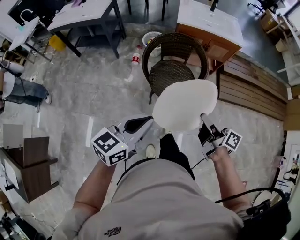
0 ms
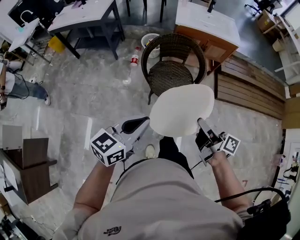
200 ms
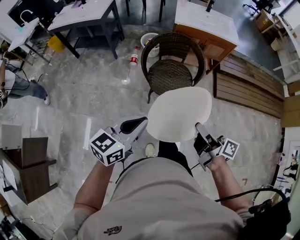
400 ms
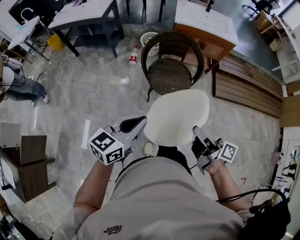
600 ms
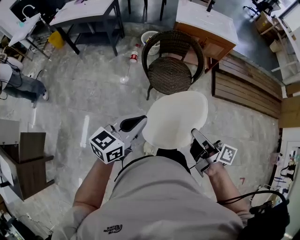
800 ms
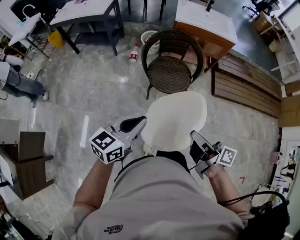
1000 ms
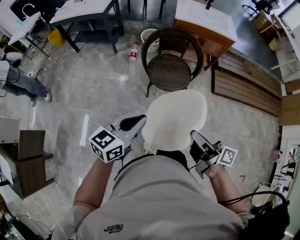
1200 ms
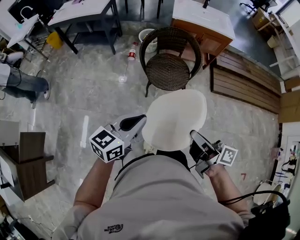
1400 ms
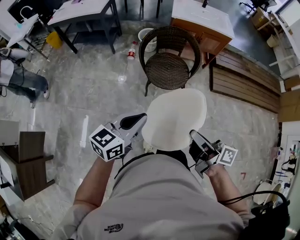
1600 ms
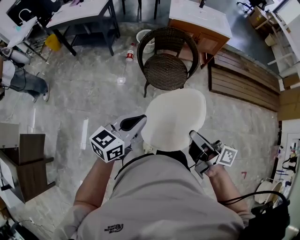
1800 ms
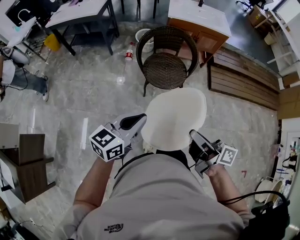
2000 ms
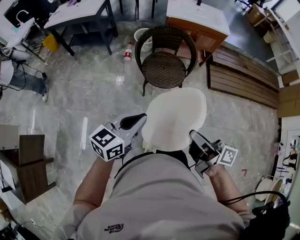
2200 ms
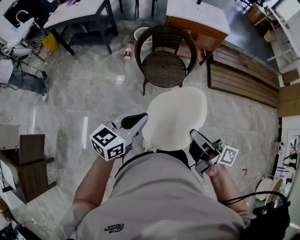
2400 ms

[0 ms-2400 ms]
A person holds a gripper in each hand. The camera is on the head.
0 ms to 1200 ms: The right gripper goes some 15 cm backward. Meanwhile the left gripper is displaced backward by approximately 10 cm.
1200 ms to 2400 ms: The grippers make only small movements.

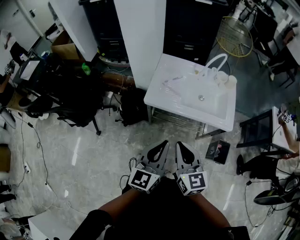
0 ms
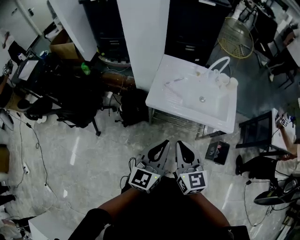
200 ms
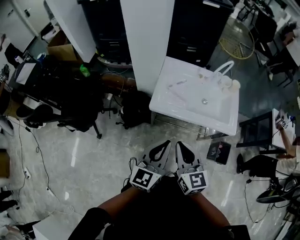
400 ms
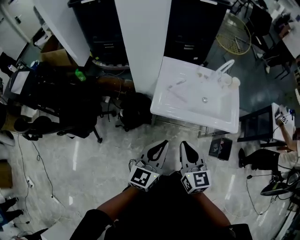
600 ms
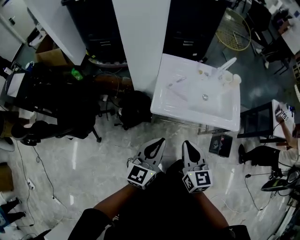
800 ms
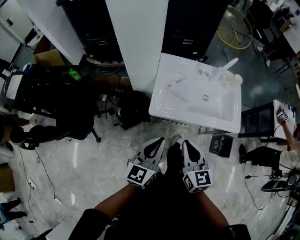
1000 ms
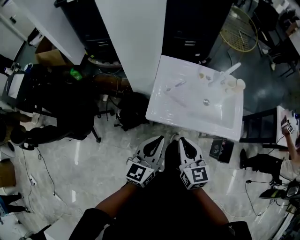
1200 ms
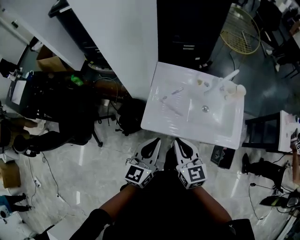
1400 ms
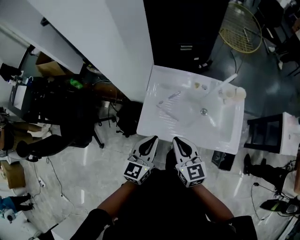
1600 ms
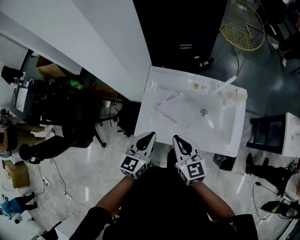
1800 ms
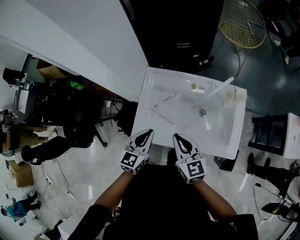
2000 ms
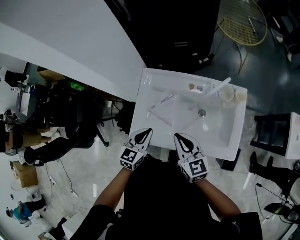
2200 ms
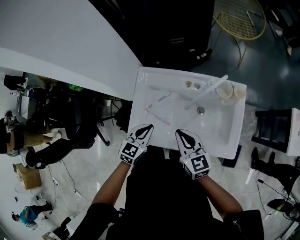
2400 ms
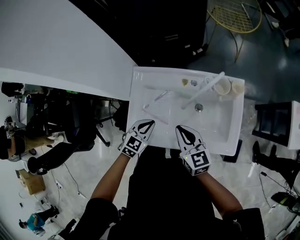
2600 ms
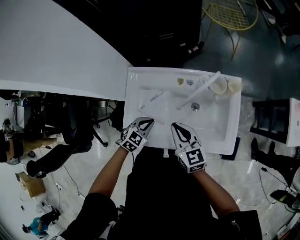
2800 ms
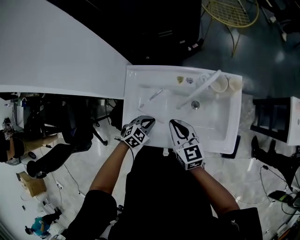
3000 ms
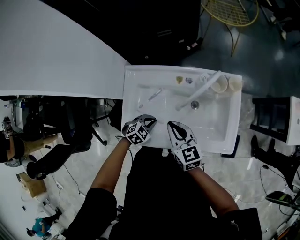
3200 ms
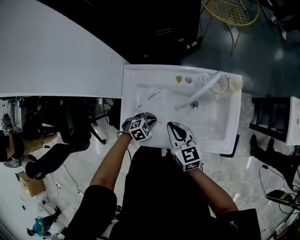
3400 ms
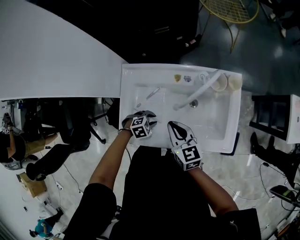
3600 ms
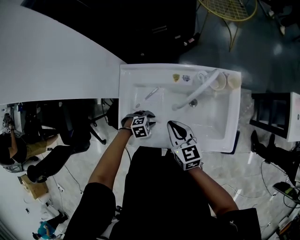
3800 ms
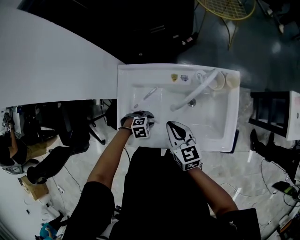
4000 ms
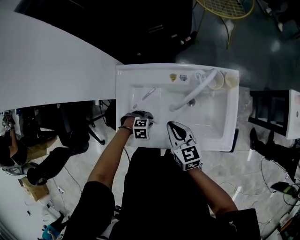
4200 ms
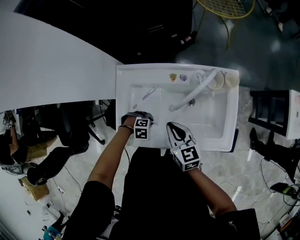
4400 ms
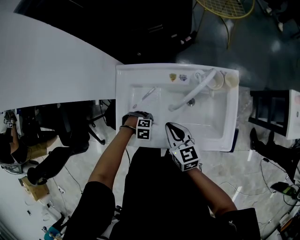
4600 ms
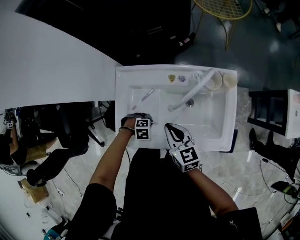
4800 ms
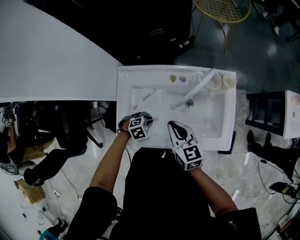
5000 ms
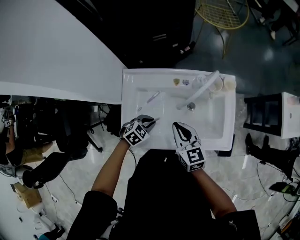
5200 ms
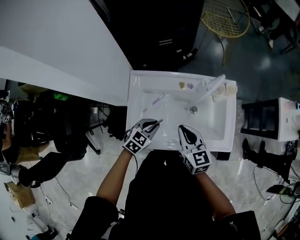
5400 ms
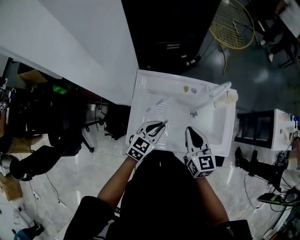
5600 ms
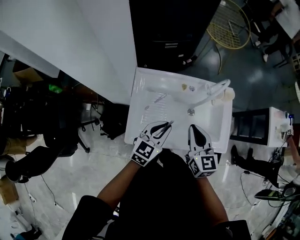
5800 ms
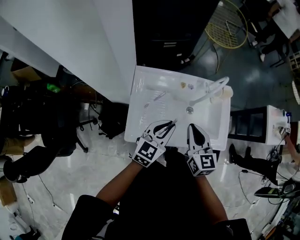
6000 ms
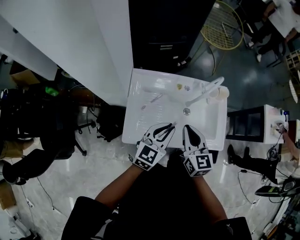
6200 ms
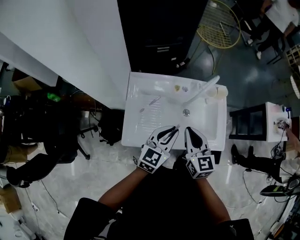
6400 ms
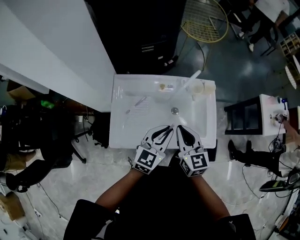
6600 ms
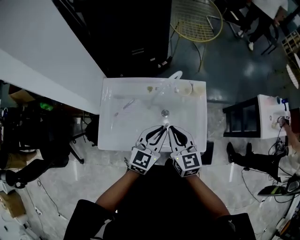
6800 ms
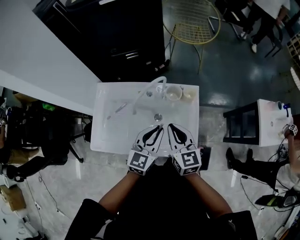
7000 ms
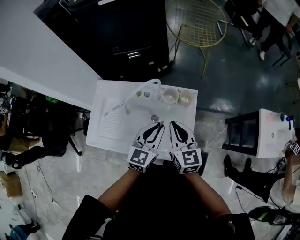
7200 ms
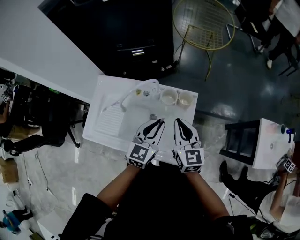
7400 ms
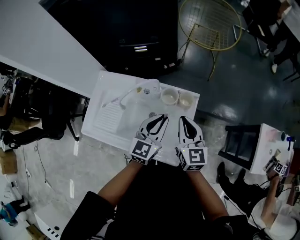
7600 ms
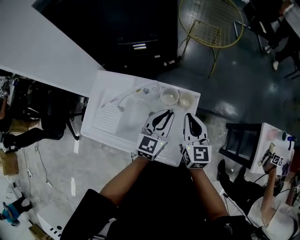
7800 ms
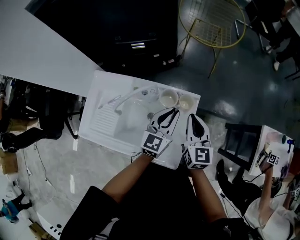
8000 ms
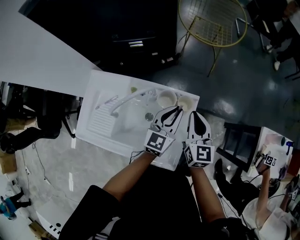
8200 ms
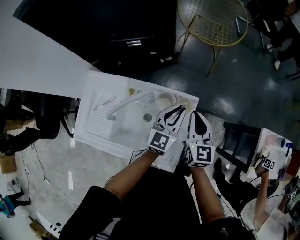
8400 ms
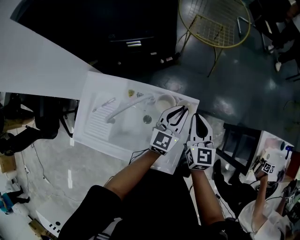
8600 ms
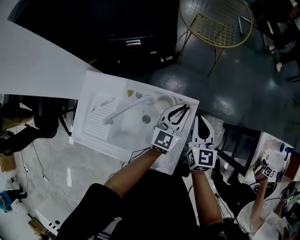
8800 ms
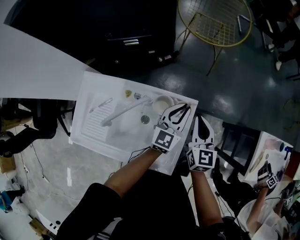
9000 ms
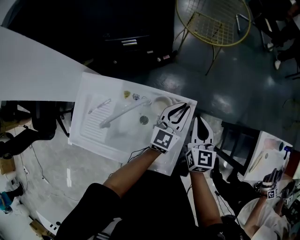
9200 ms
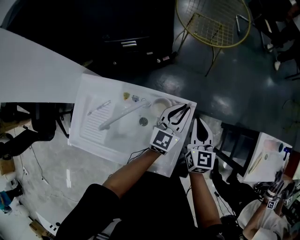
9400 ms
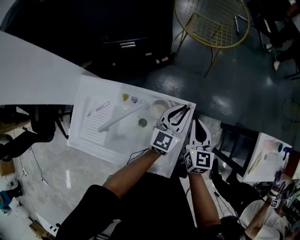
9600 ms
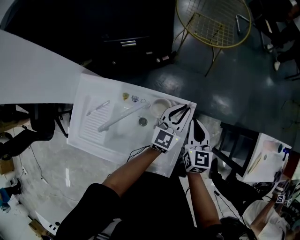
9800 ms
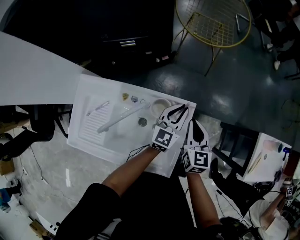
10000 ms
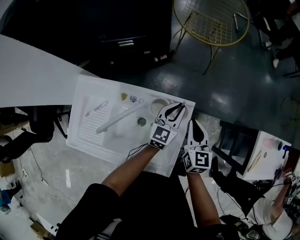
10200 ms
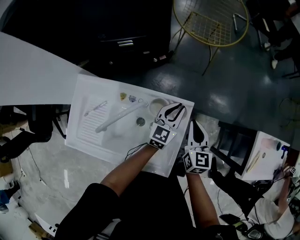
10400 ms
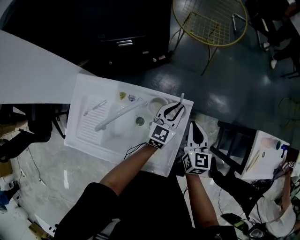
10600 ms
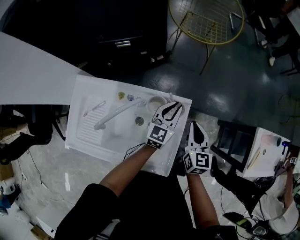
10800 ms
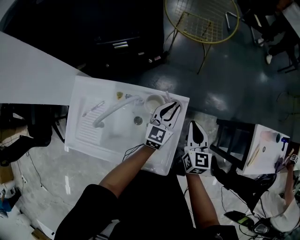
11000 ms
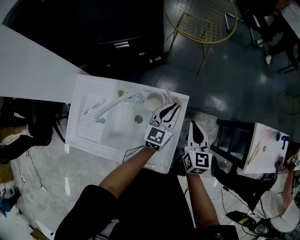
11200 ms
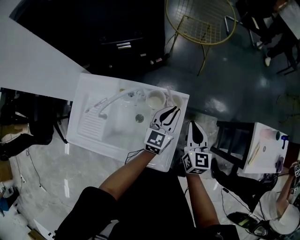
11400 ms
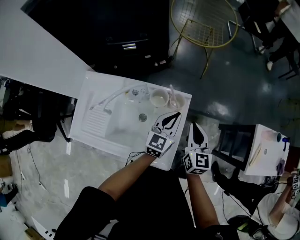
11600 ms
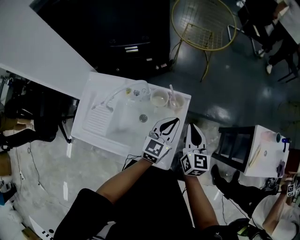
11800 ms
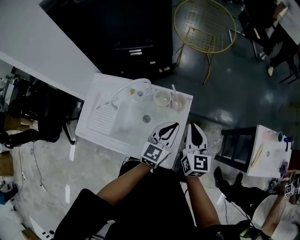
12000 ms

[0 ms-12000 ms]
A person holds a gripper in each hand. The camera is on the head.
0 ms to 1600 ms: The two grippers go some 30 cm forward.
1600 ms to 3000 ms: The left gripper moves downward and forward, approximately 25 cm, and tips its fingers downward by roughly 40 degrees. The right gripper heads forward, to the right and downward, covering roughly 20 cm.
3000 ms to 4400 ms: The left gripper goes about 10 cm downward, and swivels about 50 degrees.
4400 ms to 6000 ms: The left gripper travels upward by some 30 cm, and points its fingers some 60 degrees further upward, while the right gripper travels upward by about 10 cm, and turns by some 20 degrees.
6000 ms to 7600 ms: The two grippers go about 35 cm to the right and forward. The left gripper rotates roughly 20 degrees.
7600 ms to 9000 ms: The right gripper moves forward, to the right and downward, some 15 cm. The left gripper moves forward and to the right, about 20 cm.
9000 ms to 10400 ms: The left gripper shifts approximately 5 cm downward.
10400 ms to 12000 ms: The grippers both shift backward and upward by approximately 15 cm.

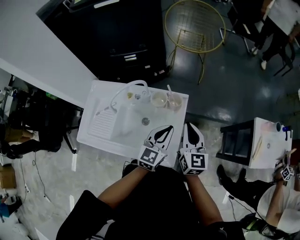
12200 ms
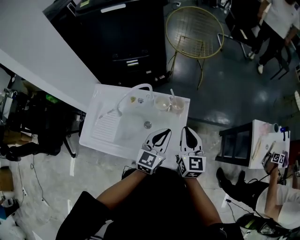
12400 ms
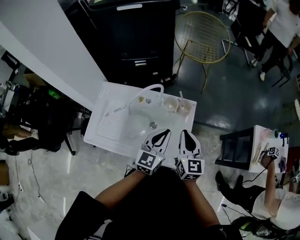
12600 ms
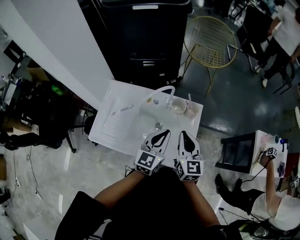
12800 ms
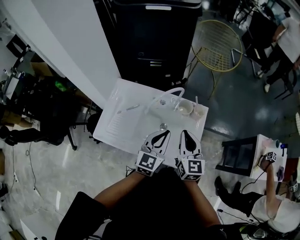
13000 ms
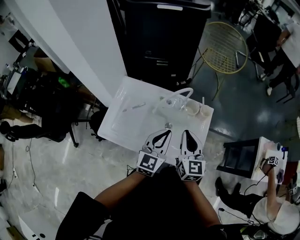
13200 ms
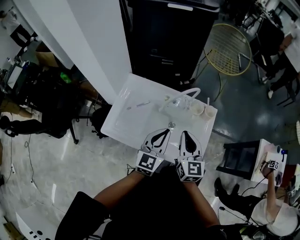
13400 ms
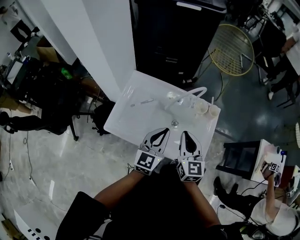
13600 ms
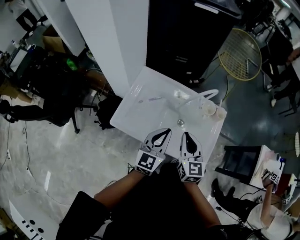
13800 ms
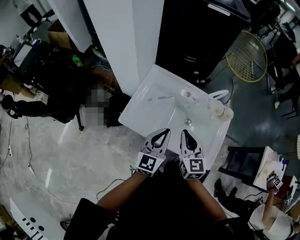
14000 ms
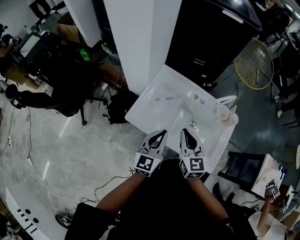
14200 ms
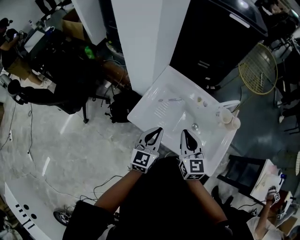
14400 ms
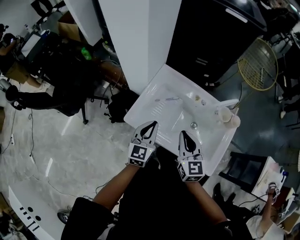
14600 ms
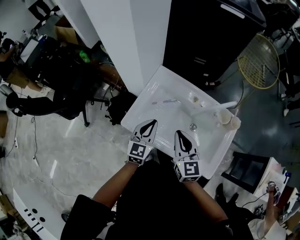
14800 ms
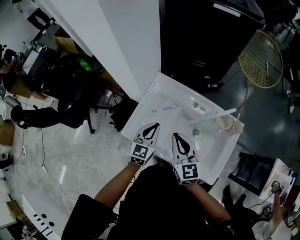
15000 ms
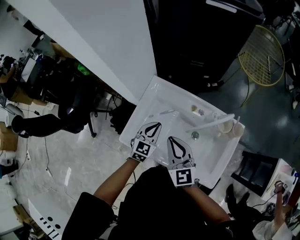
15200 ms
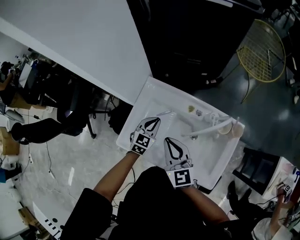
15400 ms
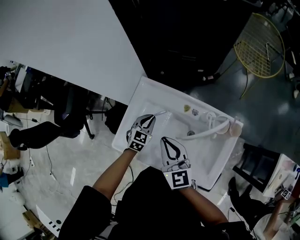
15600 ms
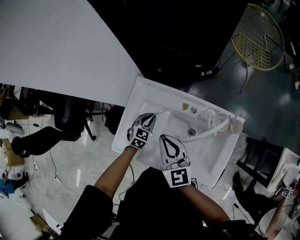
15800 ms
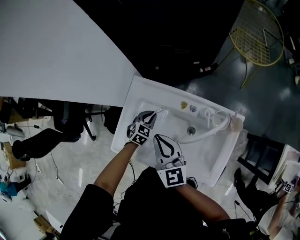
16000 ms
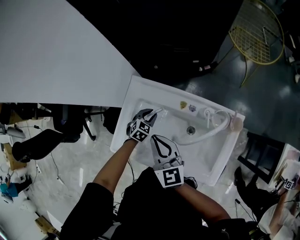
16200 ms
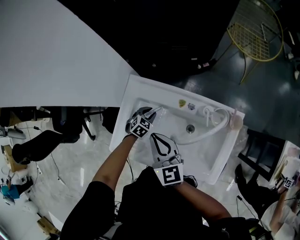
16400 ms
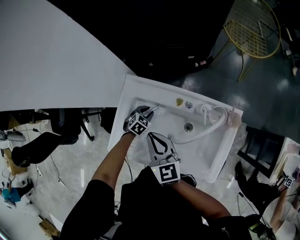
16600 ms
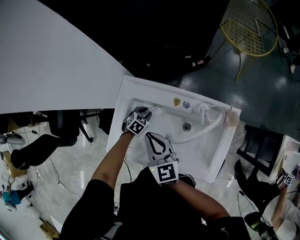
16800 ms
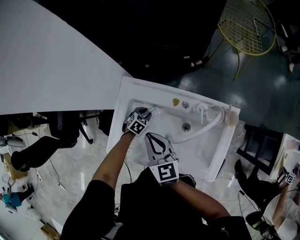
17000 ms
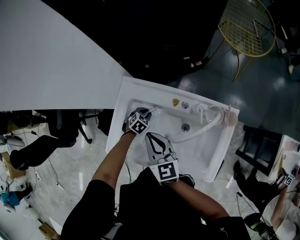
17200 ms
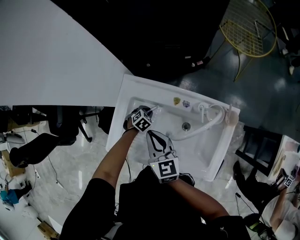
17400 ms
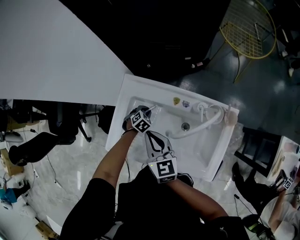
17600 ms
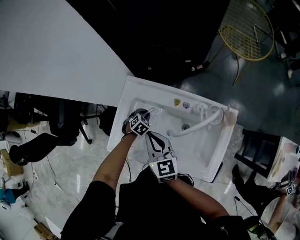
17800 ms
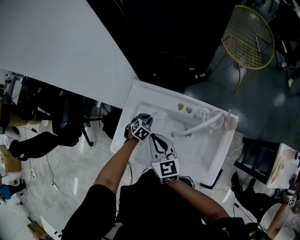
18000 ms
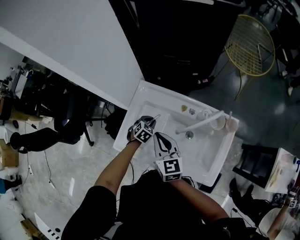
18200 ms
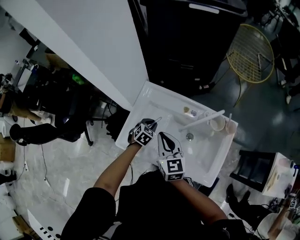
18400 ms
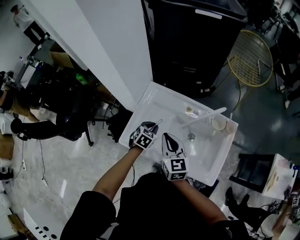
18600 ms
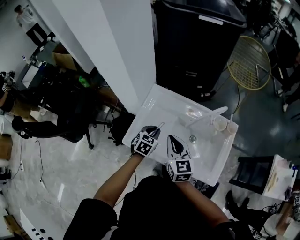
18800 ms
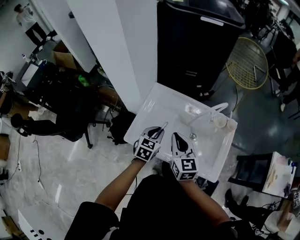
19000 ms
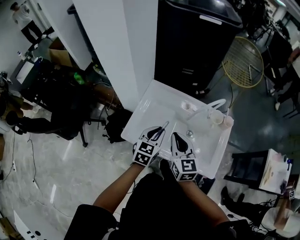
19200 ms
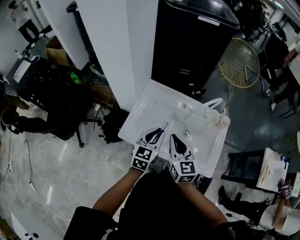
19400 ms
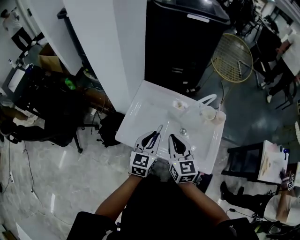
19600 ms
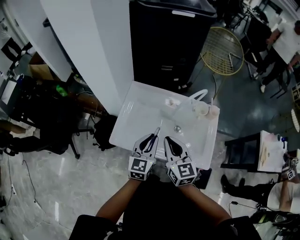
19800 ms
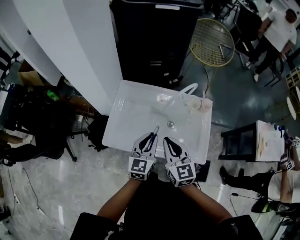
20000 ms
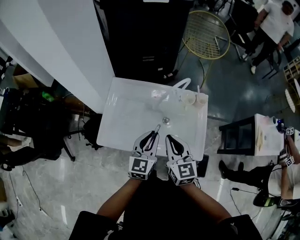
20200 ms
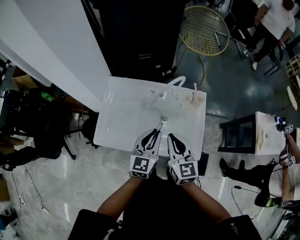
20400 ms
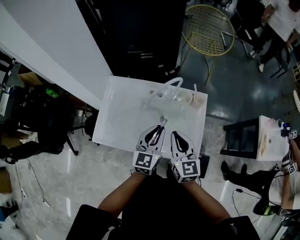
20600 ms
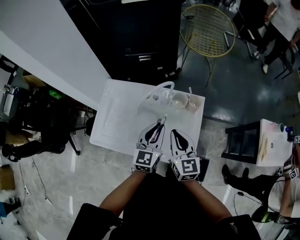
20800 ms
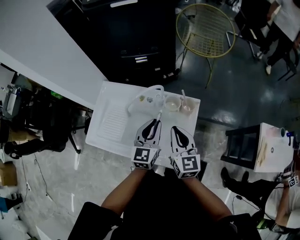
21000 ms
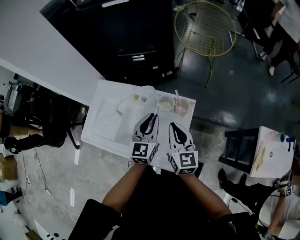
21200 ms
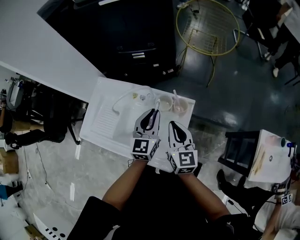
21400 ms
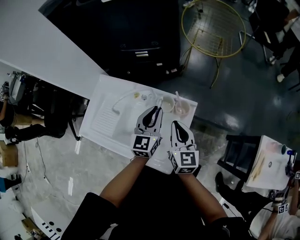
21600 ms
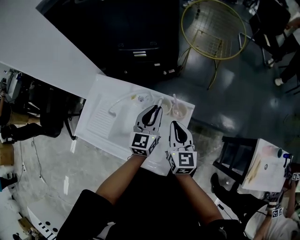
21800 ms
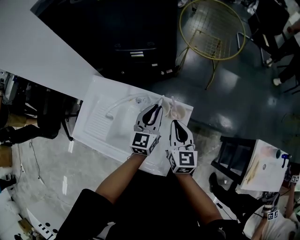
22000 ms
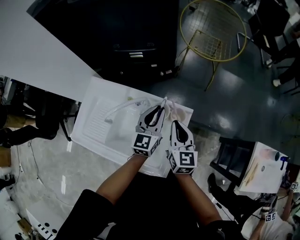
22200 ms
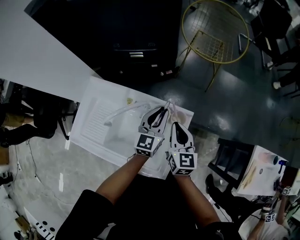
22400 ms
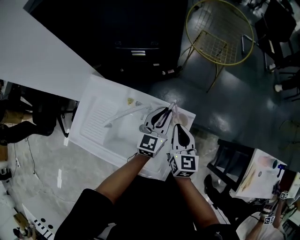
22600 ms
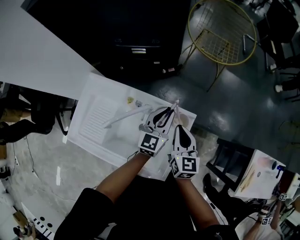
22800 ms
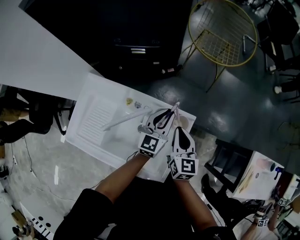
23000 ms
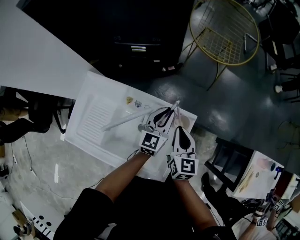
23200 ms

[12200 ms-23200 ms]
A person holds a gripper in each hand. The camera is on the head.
12200 ms to 13800 ms: The grippers both shift to the left by approximately 30 cm.
13800 ms to 15400 ms: The right gripper shifts approximately 15 cm forward and to the left, while the left gripper travels forward and downward by approximately 25 cm, and swivels some 30 degrees.
15400 ms to 17000 ms: The left gripper moves downward, roughly 20 cm, swivels some 30 degrees, and opens. The right gripper shifts some 5 cm downward.
17000 ms to 18400 ms: The left gripper heads upward and backward, covering about 15 cm, while the right gripper is displaced backward by some 5 cm.
18400 ms to 20000 ms: The left gripper travels upward and backward by some 25 cm, and tilts its fingers about 40 degrees upward. The right gripper shifts some 15 cm backward and to the right.
20000 ms to 21600 ms: The grippers both shift to the right and forward by approximately 35 cm.
21600 ms to 23200 ms: The two grippers go approximately 10 cm forward and downward.
